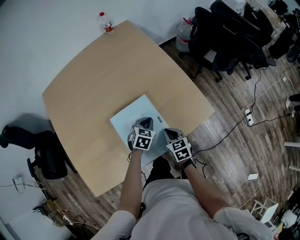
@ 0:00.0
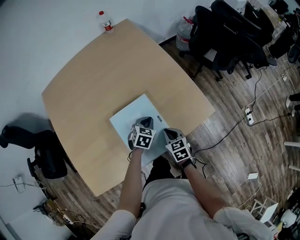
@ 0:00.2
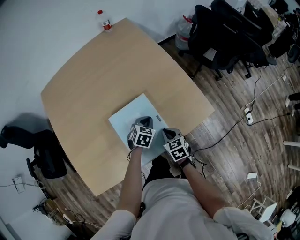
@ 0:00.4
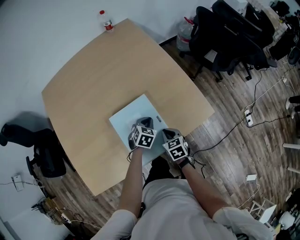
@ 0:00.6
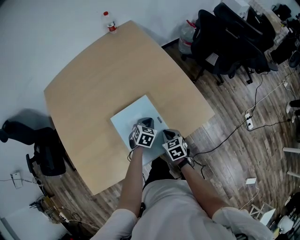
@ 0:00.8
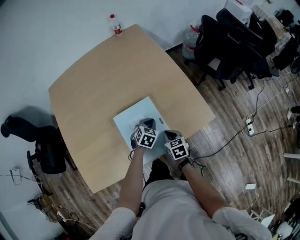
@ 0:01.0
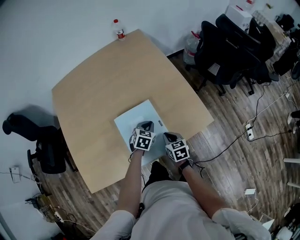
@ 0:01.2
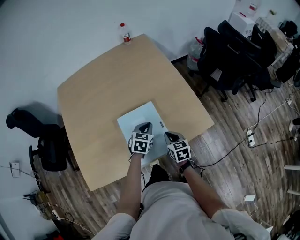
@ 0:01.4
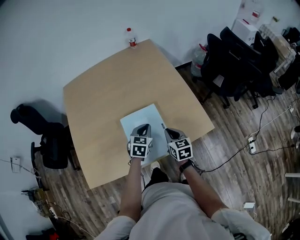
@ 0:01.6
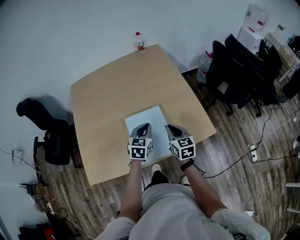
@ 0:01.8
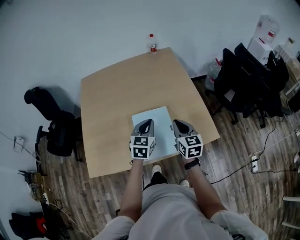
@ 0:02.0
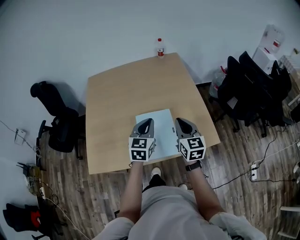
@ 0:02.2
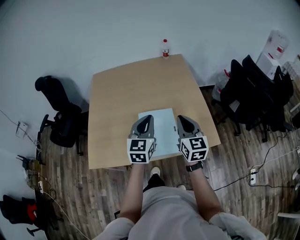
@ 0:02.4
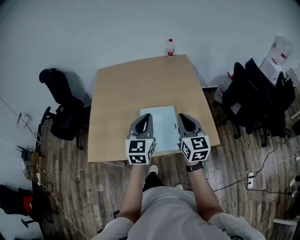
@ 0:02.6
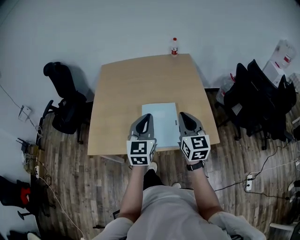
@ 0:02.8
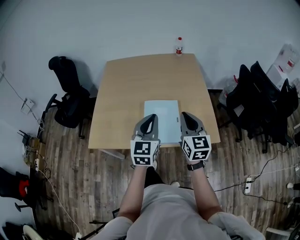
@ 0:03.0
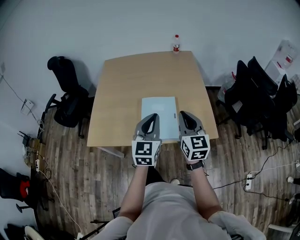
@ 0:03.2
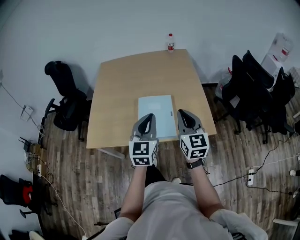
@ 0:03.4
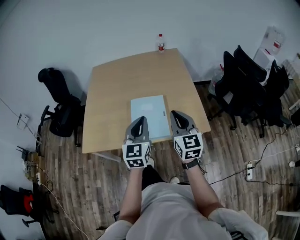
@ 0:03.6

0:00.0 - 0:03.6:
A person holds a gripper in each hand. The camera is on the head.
0:00.0 - 0:01.8: Both grippers travel together upward, some 15 cm. The left gripper rotates approximately 30 degrees.
0:01.8 - 0:03.6: The left gripper heads backward and upward, covering about 25 cm, and changes its angle by roughly 30 degrees; the right gripper moves upward and backward, roughly 20 cm, and rotates roughly 30 degrees.

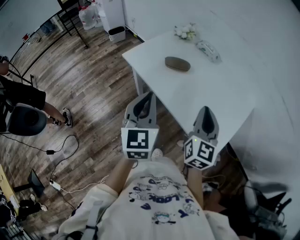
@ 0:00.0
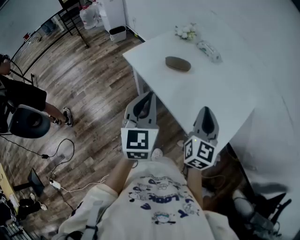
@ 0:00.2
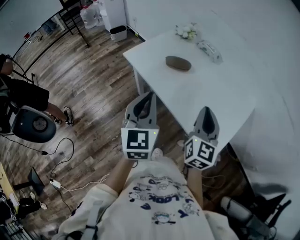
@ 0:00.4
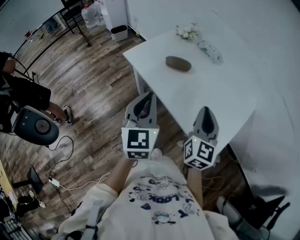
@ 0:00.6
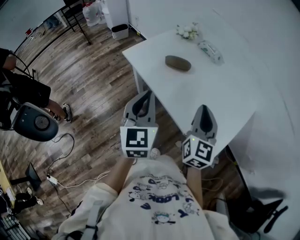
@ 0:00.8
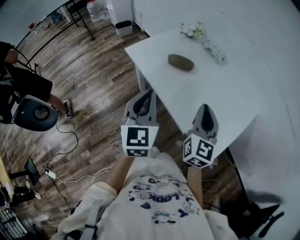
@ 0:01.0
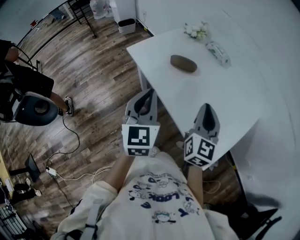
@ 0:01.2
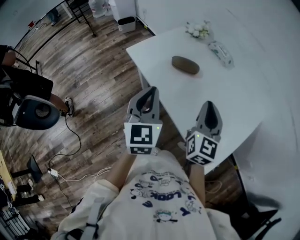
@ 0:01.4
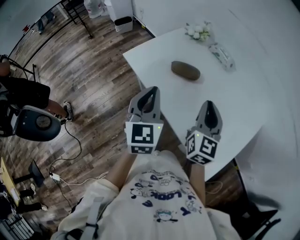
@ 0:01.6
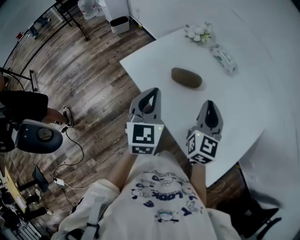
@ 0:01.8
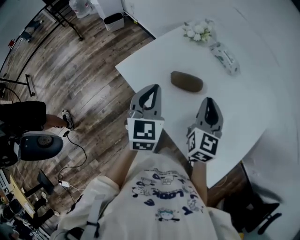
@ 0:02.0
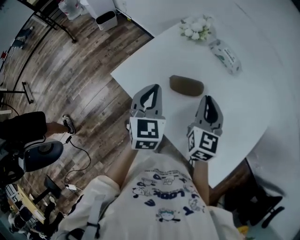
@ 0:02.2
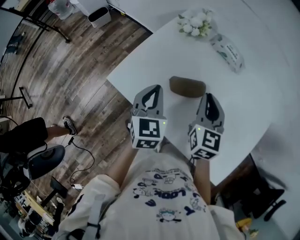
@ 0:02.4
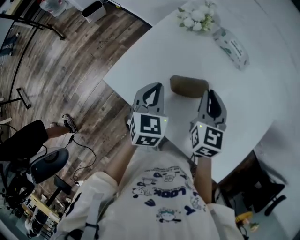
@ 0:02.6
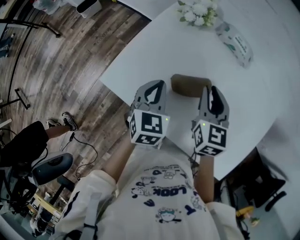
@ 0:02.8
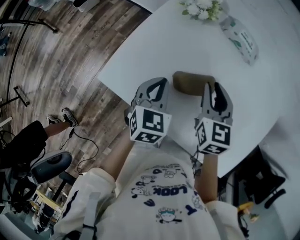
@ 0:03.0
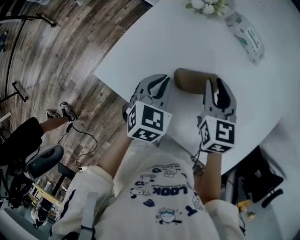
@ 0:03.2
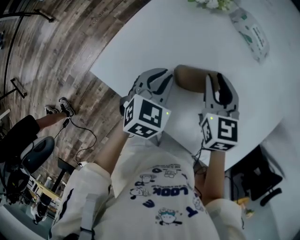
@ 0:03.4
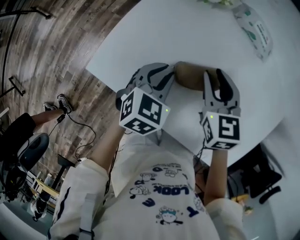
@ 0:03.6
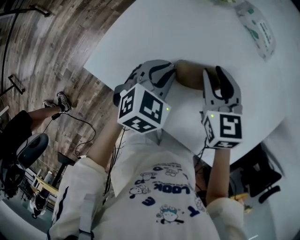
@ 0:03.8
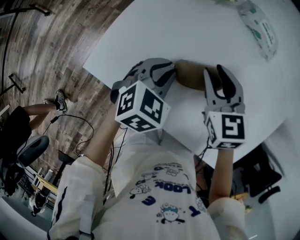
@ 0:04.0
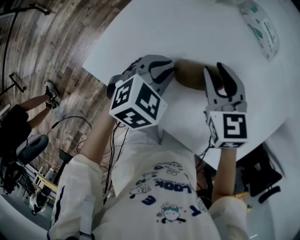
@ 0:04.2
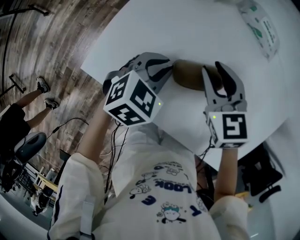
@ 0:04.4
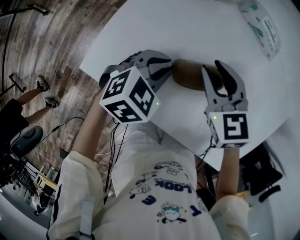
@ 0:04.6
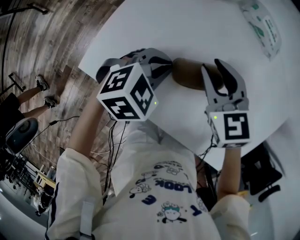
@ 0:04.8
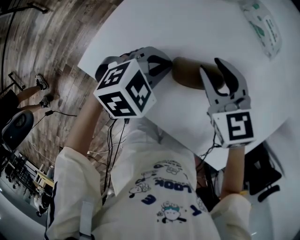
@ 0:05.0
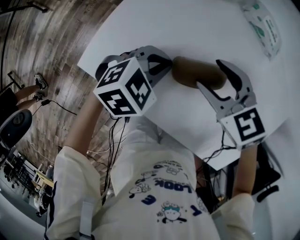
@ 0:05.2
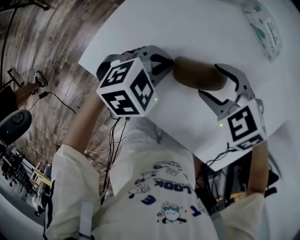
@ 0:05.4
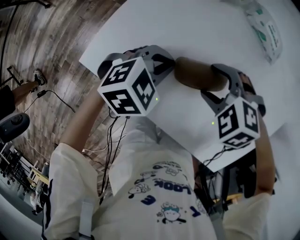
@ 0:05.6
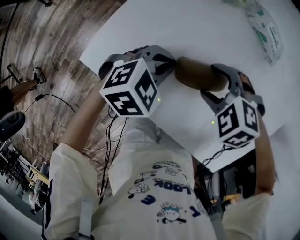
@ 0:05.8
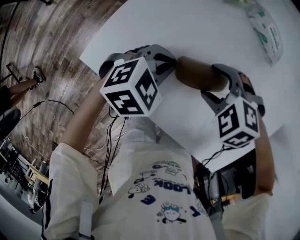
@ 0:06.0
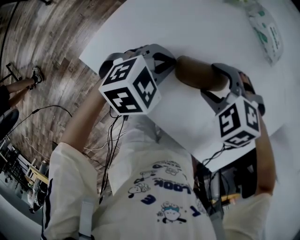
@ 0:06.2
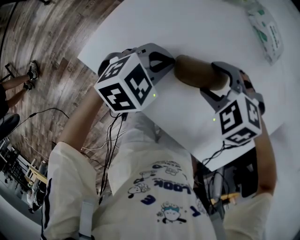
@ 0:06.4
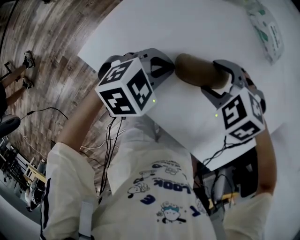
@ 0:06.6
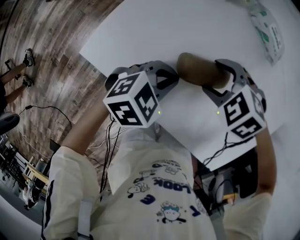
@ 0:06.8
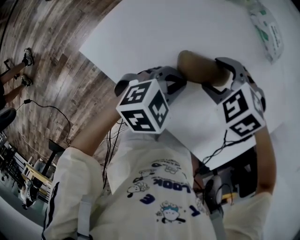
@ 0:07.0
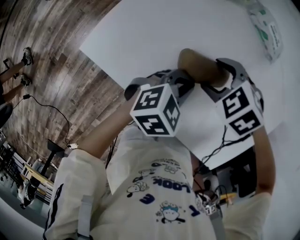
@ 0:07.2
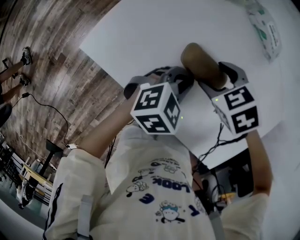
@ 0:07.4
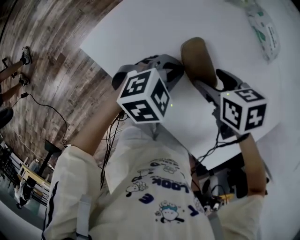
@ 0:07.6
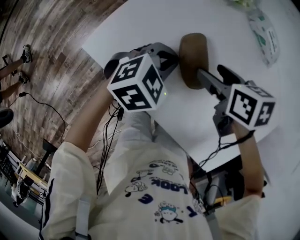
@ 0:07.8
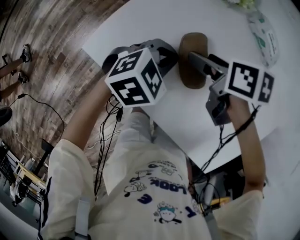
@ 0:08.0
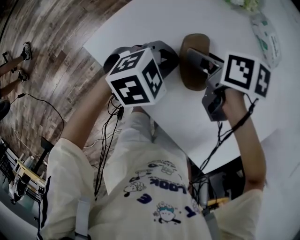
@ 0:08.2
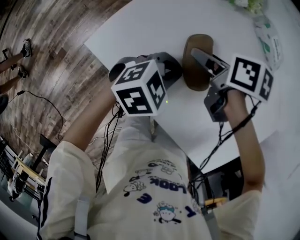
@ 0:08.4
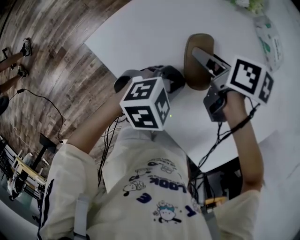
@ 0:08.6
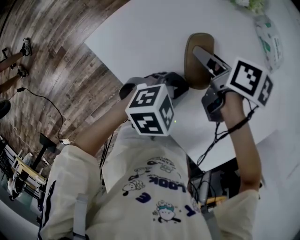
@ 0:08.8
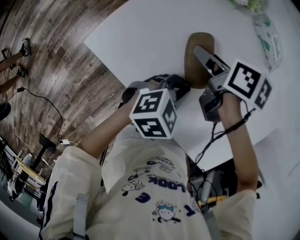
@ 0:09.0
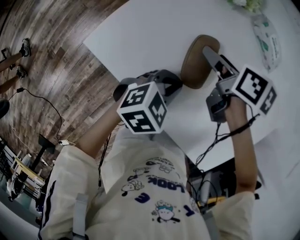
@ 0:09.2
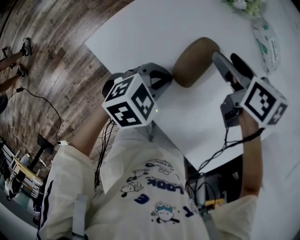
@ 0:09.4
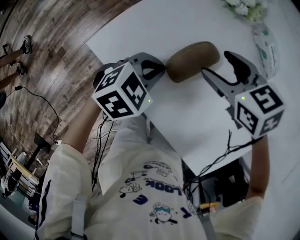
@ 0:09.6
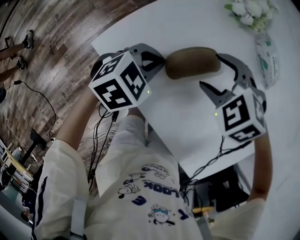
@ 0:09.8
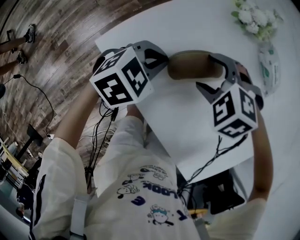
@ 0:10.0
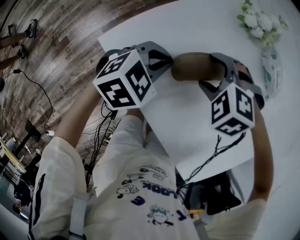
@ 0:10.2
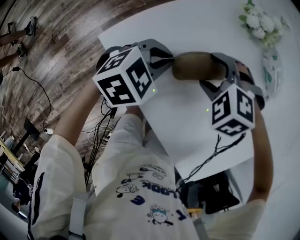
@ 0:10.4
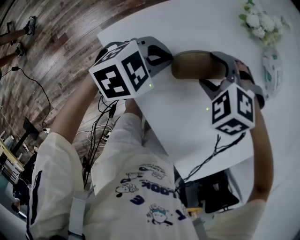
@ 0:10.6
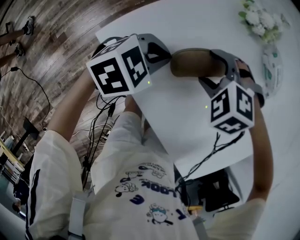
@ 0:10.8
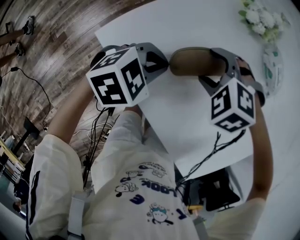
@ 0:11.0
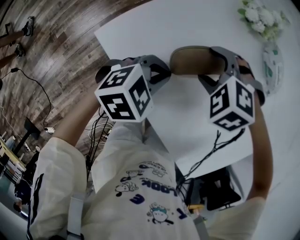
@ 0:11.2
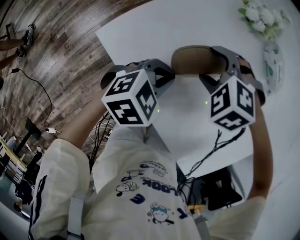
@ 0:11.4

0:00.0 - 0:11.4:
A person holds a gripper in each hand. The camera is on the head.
0:00.0 - 0:01.4: The two grippers go about 10 cm forward.
0:01.4 - 0:02.8: Both grippers travel together forward and downward, approximately 35 cm. The left gripper changes its angle by approximately 40 degrees; the right gripper turns by approximately 20 degrees.
0:02.8 - 0:04.2: The grippers both shift downward by roughly 5 cm. The left gripper rotates about 30 degrees. Meanwhile the right gripper changes its angle by about 30 degrees.
0:04.2 - 0:05.6: The right gripper moves roughly 5 cm, angles its fingers downward, by about 30 degrees, and opens.
0:05.6 - 0:07.2: The left gripper shifts by some 10 cm.
0:07.2 - 0:08.6: The right gripper shifts by roughly 10 cm, and twists about 70 degrees clockwise, seen from behind.
0:08.6 - 0:10.0: The right gripper rolls counterclockwise, seen from behind, by approximately 100 degrees. Meanwhile the left gripper shifts by roughly 15 cm.
0:10.0 - 0:11.4: The left gripper ends up about 5 cm from where it was.

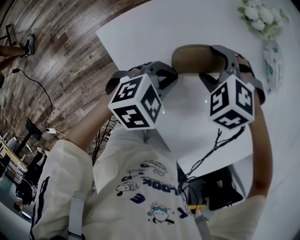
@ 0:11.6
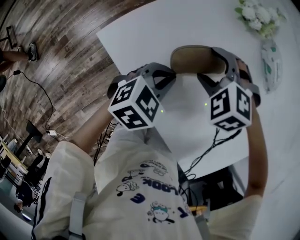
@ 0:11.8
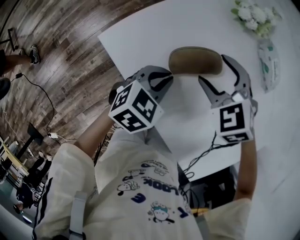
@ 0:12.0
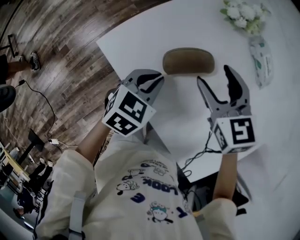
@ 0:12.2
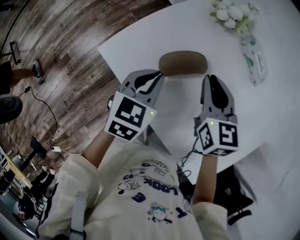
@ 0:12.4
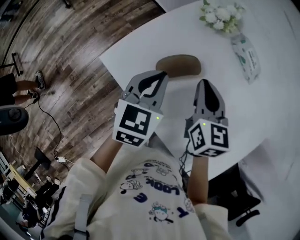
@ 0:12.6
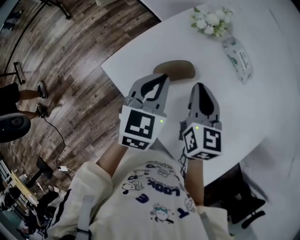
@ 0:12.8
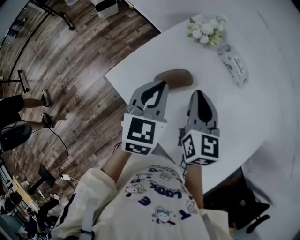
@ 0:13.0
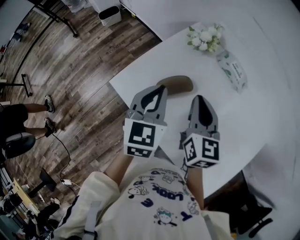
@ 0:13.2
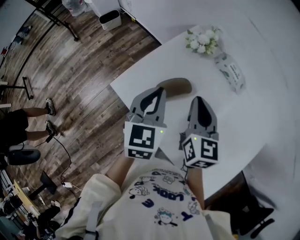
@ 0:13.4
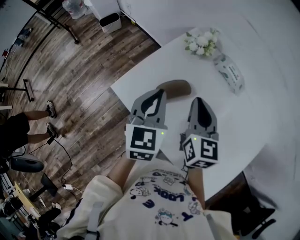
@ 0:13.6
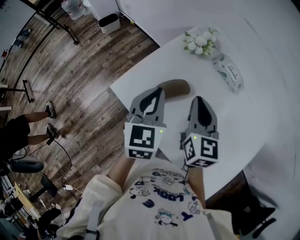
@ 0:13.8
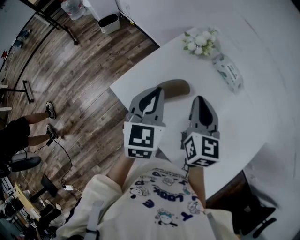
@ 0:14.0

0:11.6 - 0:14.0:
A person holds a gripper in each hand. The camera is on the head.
0:11.6 - 0:12.8: The two grippers go roughly 15 cm upward. The right gripper twists some 80 degrees clockwise, seen from behind, and closes up. Meanwhile the left gripper rotates about 40 degrees.
0:12.8 - 0:14.0: Both grippers travel together upward, approximately 5 cm.

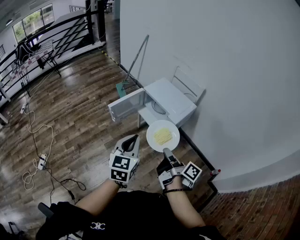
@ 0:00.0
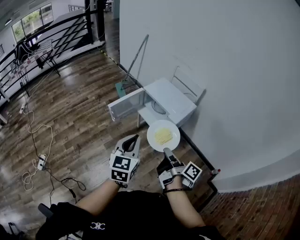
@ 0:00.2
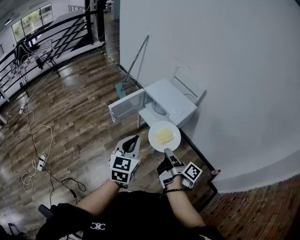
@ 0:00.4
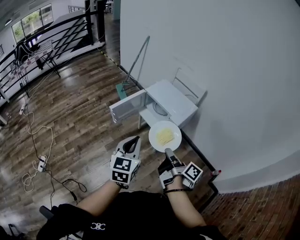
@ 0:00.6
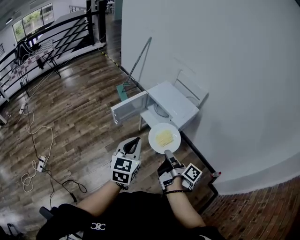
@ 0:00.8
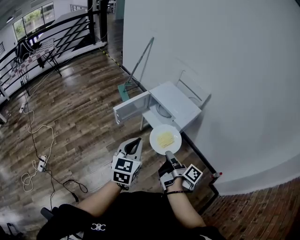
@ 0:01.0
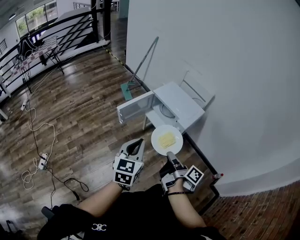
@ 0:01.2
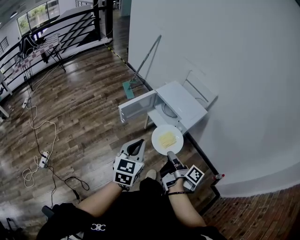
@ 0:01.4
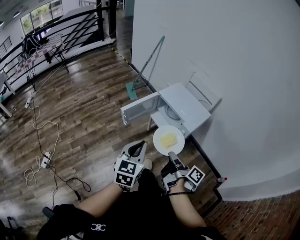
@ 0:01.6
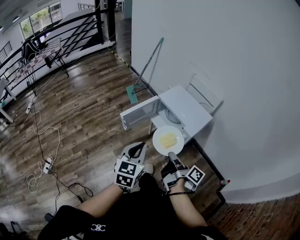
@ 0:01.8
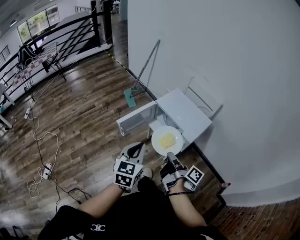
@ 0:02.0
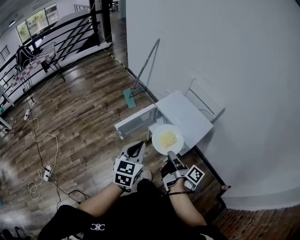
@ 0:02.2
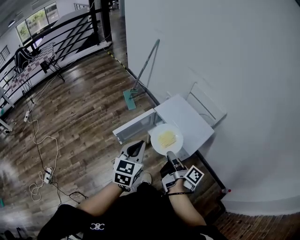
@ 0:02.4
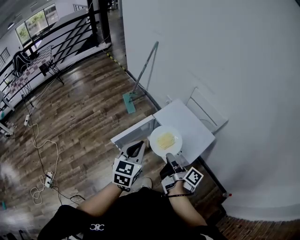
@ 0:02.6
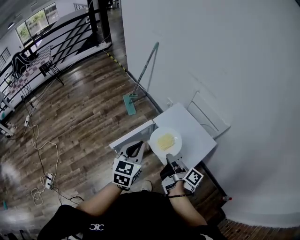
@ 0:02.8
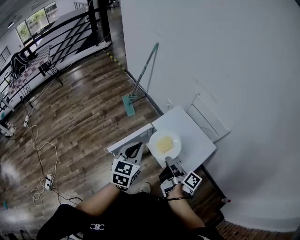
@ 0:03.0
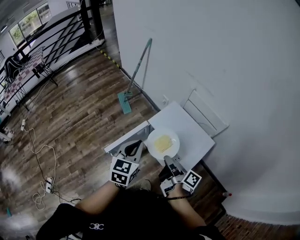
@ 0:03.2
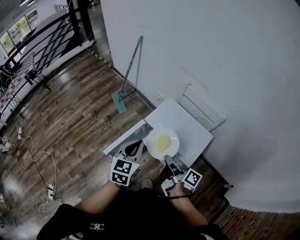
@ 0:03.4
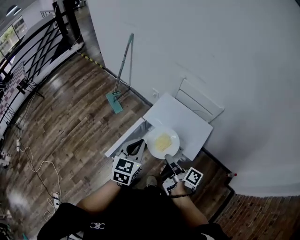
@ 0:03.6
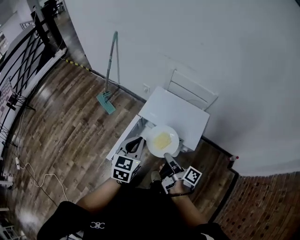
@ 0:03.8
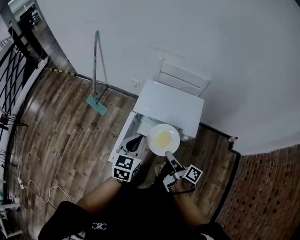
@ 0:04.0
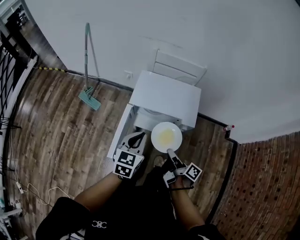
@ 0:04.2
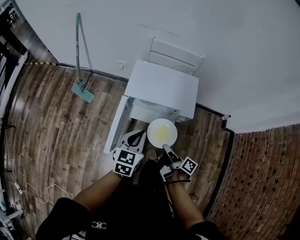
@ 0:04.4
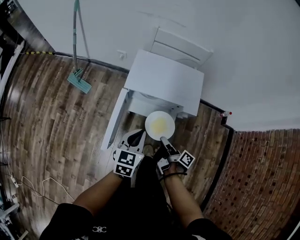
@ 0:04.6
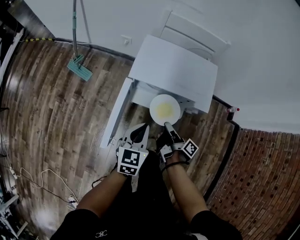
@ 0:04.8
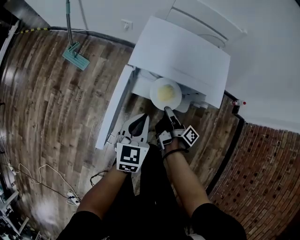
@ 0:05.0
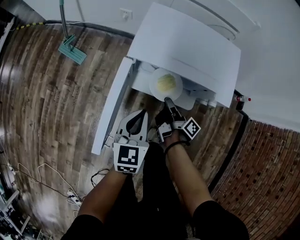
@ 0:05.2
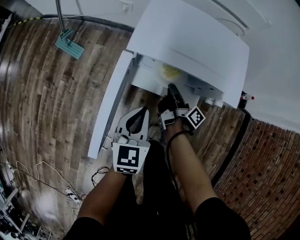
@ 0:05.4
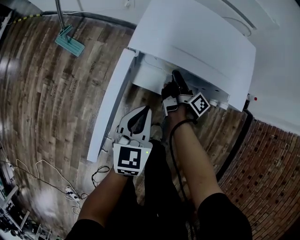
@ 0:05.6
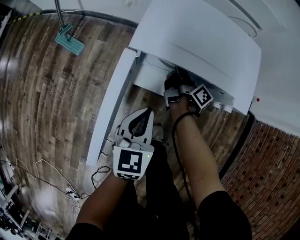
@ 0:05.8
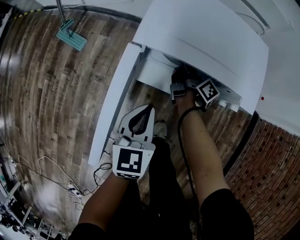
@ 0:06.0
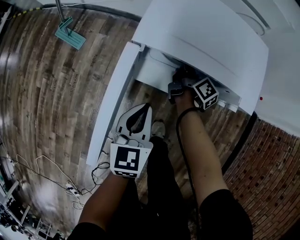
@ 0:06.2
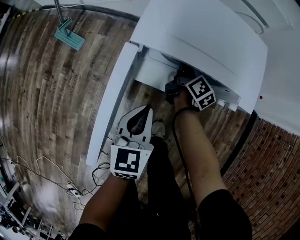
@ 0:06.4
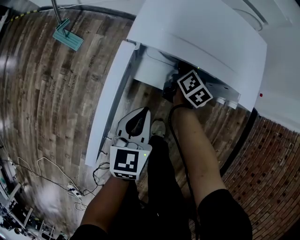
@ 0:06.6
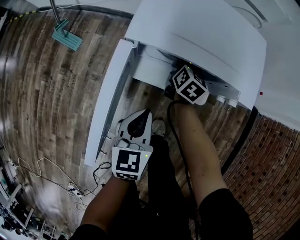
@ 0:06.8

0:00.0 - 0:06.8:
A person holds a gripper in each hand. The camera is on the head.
0:00.0 - 0:01.4: The grippers both shift to the left by about 5 cm.
0:01.4 - 0:02.8: Both grippers travel together forward, roughly 30 cm.
0:02.8 - 0:04.0: The left gripper goes about 5 cm downward, and swivels roughly 30 degrees. The right gripper changes place by some 10 cm, and changes its angle by some 30 degrees.
0:04.0 - 0:05.4: The left gripper moves downward, some 25 cm. Meanwhile the right gripper is displaced downward and forward by about 35 cm.
0:05.4 - 0:06.8: The left gripper changes place by roughly 5 cm; the right gripper moves forward, about 10 cm, twists roughly 60 degrees counterclockwise, seen from behind, and opens its fingers.
